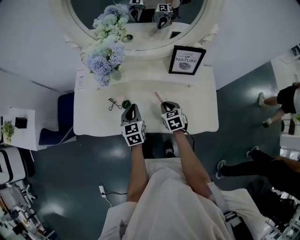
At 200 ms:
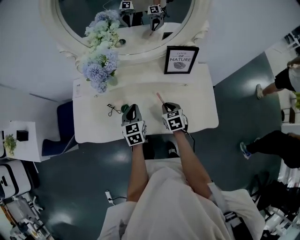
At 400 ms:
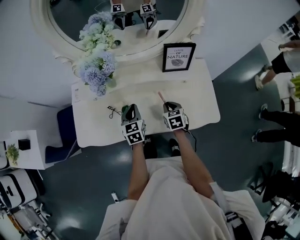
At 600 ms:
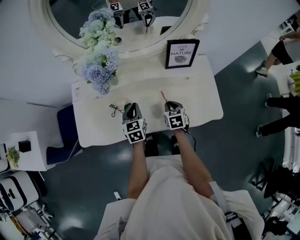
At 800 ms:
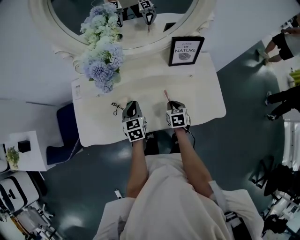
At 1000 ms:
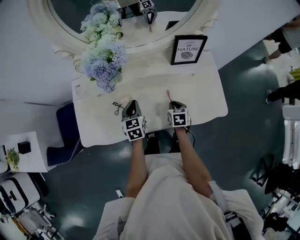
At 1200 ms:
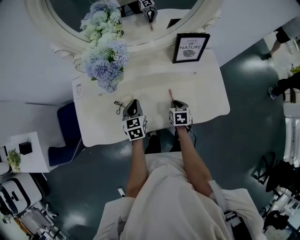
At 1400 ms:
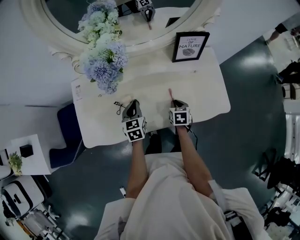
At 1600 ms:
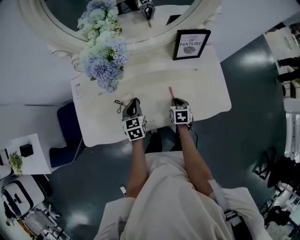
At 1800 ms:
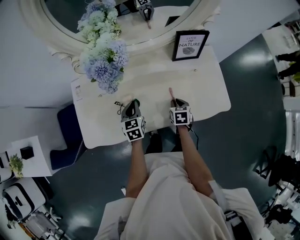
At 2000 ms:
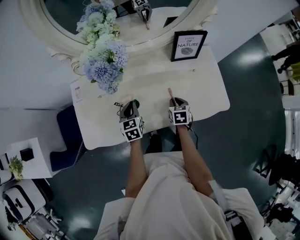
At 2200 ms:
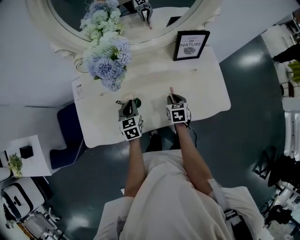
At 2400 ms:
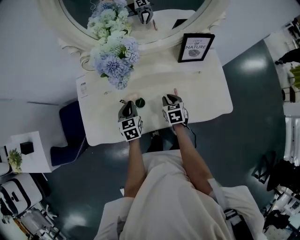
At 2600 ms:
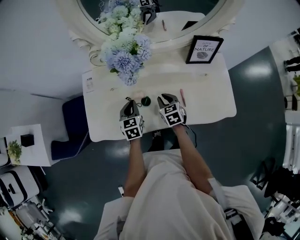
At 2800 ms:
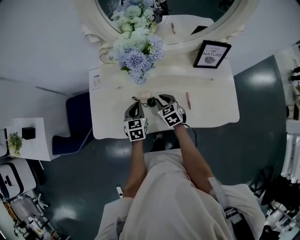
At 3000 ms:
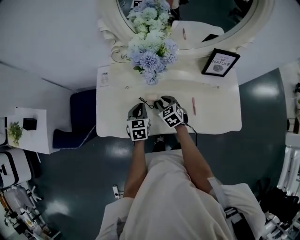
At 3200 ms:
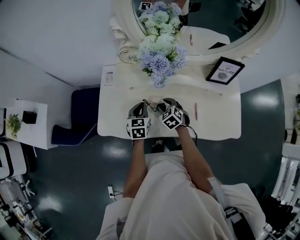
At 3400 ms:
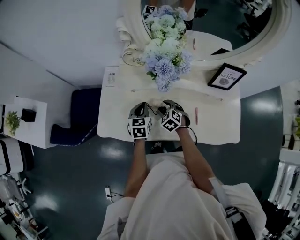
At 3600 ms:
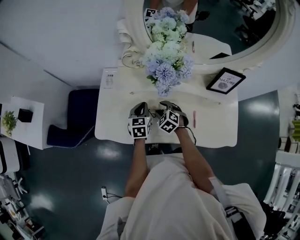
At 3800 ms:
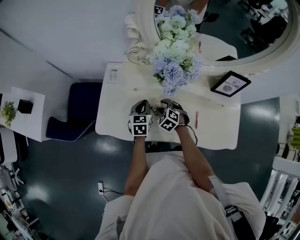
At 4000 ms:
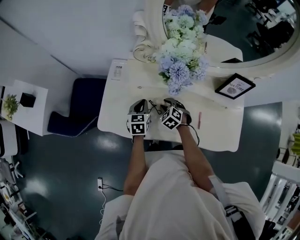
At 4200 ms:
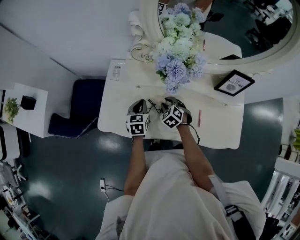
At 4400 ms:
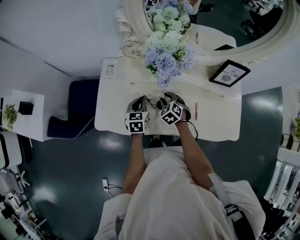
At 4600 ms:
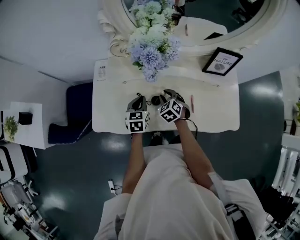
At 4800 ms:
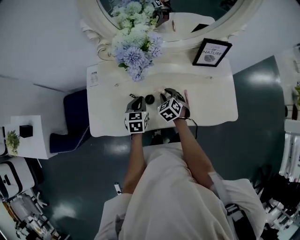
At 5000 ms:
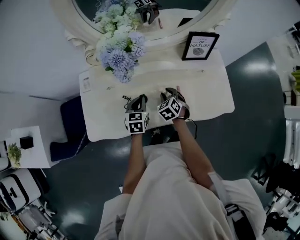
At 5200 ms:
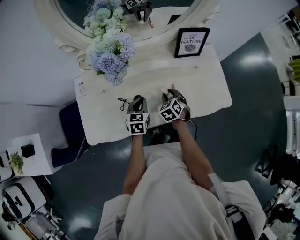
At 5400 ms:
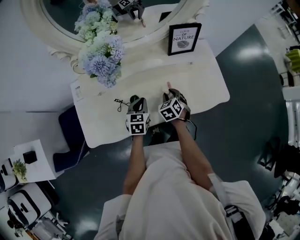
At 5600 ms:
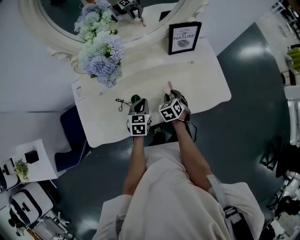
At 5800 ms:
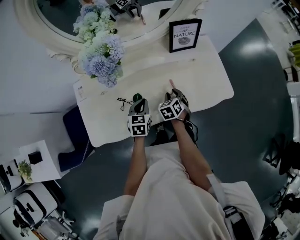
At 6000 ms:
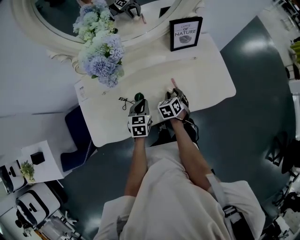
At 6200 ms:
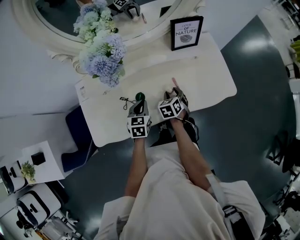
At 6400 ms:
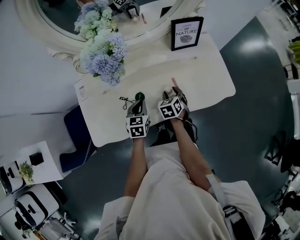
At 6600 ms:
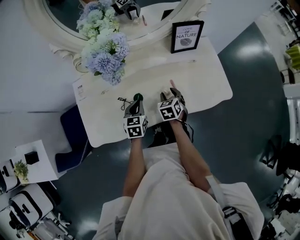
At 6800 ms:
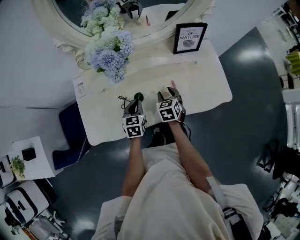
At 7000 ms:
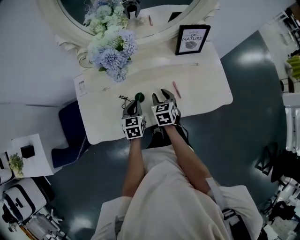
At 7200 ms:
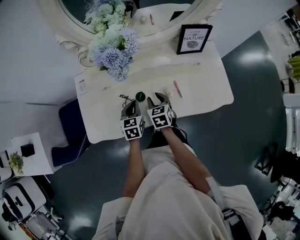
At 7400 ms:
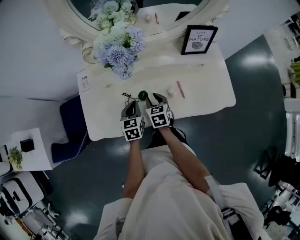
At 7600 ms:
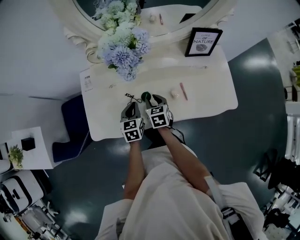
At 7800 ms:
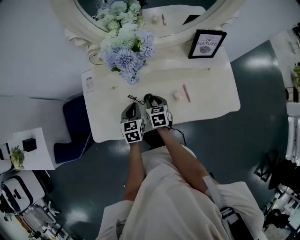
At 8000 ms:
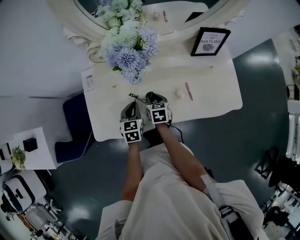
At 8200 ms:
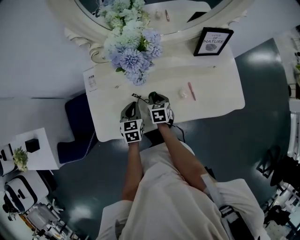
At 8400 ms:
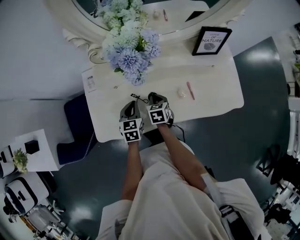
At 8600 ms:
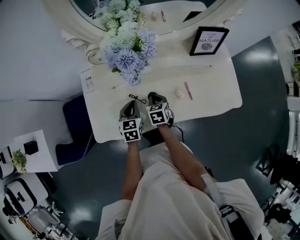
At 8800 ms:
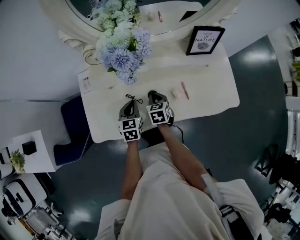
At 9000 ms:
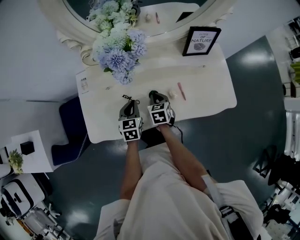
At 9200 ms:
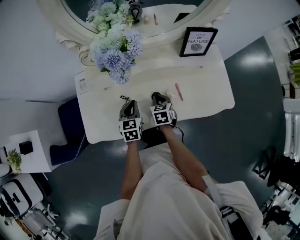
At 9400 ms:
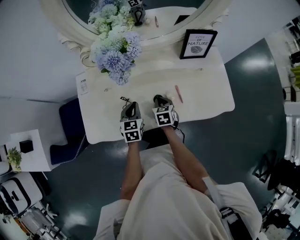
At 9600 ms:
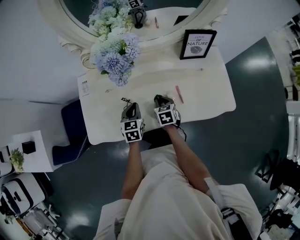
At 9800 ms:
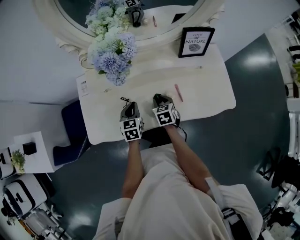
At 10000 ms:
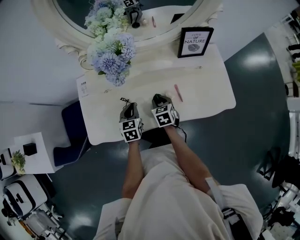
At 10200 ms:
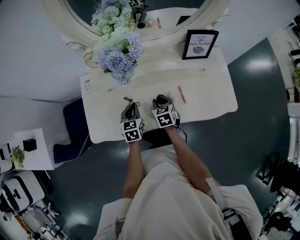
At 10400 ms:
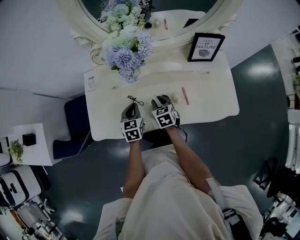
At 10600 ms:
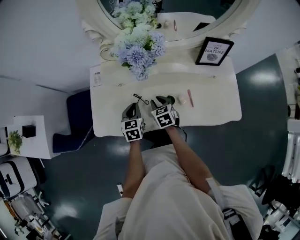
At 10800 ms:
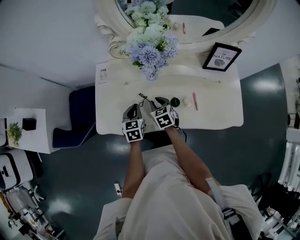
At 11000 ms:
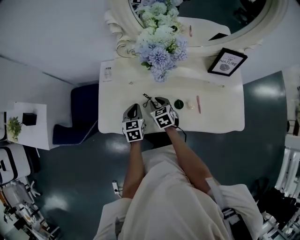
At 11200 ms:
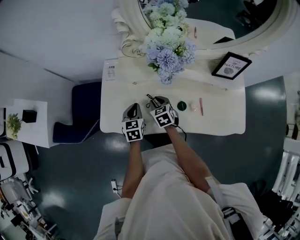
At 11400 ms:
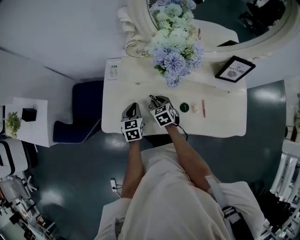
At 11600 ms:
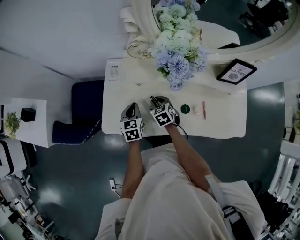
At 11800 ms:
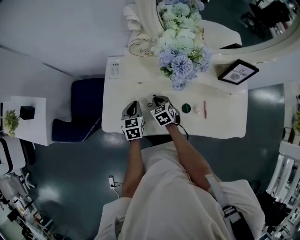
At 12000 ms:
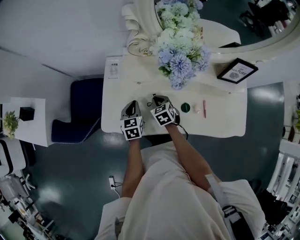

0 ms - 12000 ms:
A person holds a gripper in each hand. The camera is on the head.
0 ms - 1600 ms: The left gripper travels downward and to the left by some 10 cm. Meanwhile the right gripper is displaced downward by approximately 10 cm, and turns by about 30 degrees.
1600 ms - 3000 ms: The right gripper shifts about 25 cm to the left, and swivels about 50 degrees, while the left gripper shifts approximately 10 cm to the left.
4400 ms - 6000 ms: The right gripper shifts by approximately 20 cm, and rotates around the line of its fingers by about 40 degrees, clockwise from behind. Meanwhile the left gripper moves some 15 cm, and turns by approximately 30 degrees.
6000 ms - 7600 ms: The right gripper shifts some 15 cm to the left, and changes its angle by roughly 30 degrees, while the left gripper shifts some 10 cm to the left.
7600 ms - 9000 ms: The right gripper closes.
9000 ms - 10400 ms: There are only small adjustments of the grippers.
10400 ms - 12000 ms: The right gripper is displaced to the left and forward by approximately 15 cm; the left gripper travels to the left by about 10 cm.

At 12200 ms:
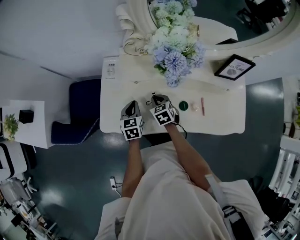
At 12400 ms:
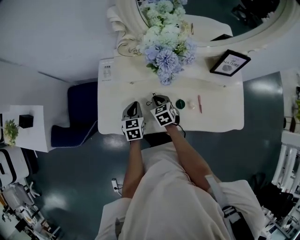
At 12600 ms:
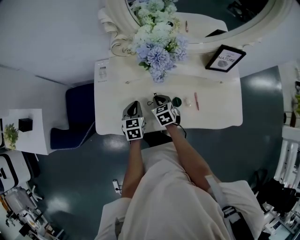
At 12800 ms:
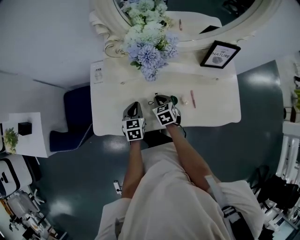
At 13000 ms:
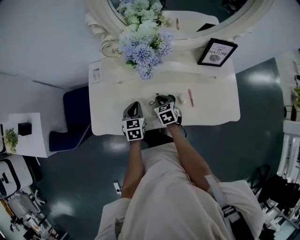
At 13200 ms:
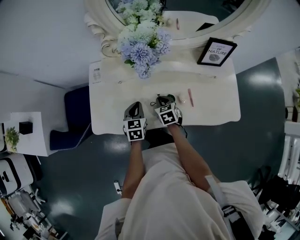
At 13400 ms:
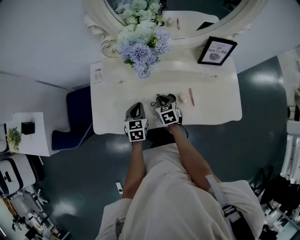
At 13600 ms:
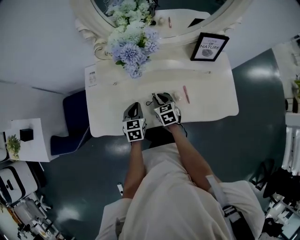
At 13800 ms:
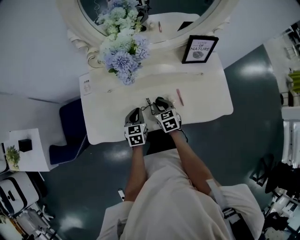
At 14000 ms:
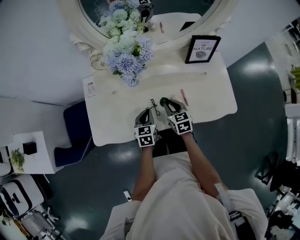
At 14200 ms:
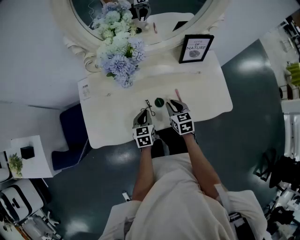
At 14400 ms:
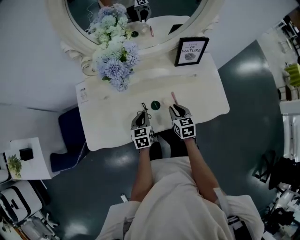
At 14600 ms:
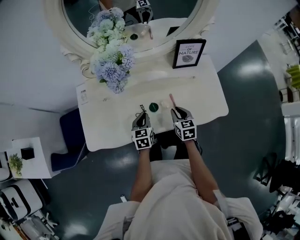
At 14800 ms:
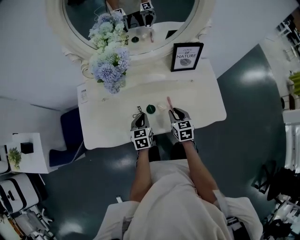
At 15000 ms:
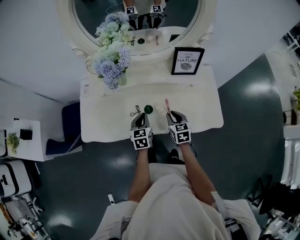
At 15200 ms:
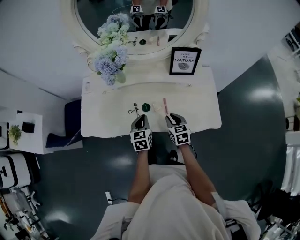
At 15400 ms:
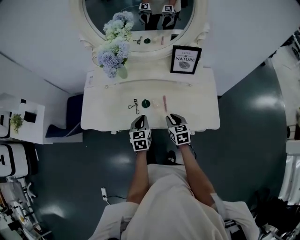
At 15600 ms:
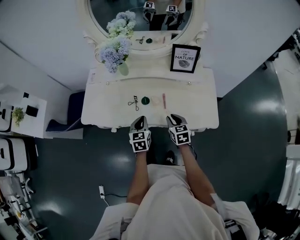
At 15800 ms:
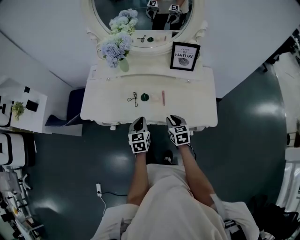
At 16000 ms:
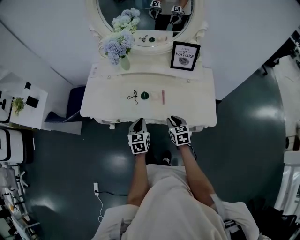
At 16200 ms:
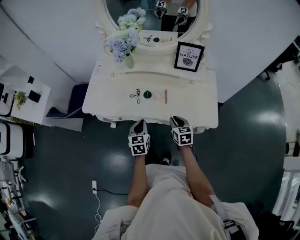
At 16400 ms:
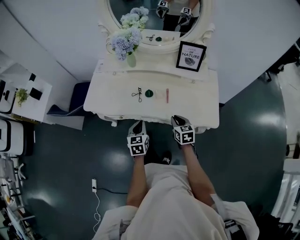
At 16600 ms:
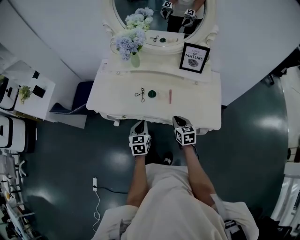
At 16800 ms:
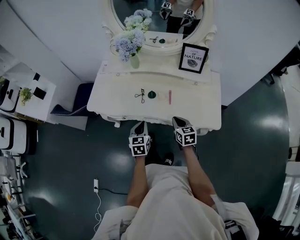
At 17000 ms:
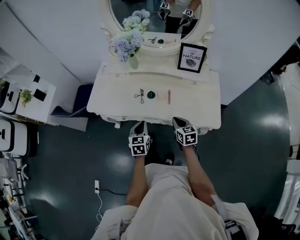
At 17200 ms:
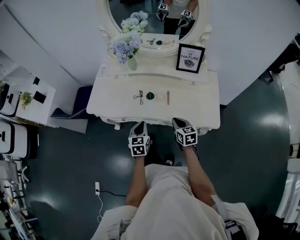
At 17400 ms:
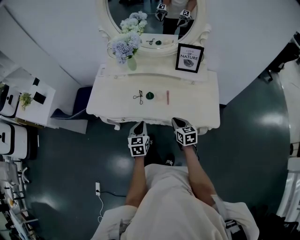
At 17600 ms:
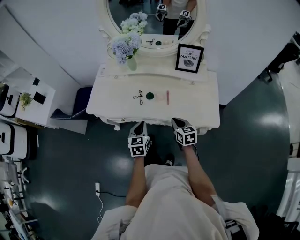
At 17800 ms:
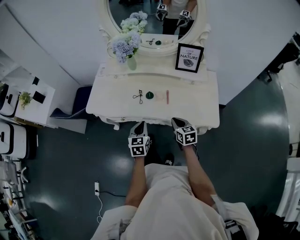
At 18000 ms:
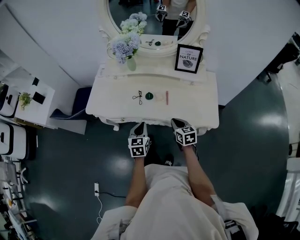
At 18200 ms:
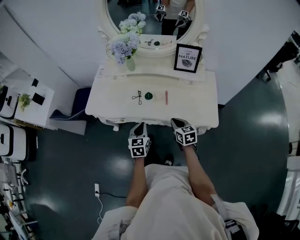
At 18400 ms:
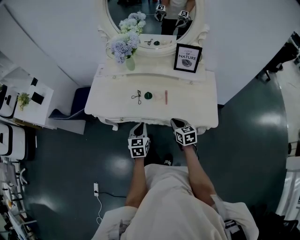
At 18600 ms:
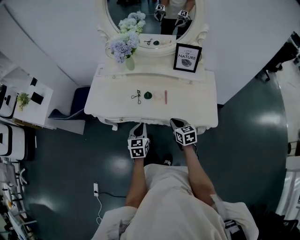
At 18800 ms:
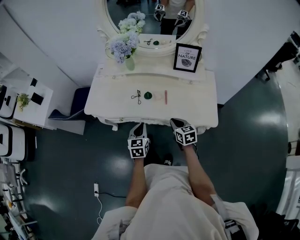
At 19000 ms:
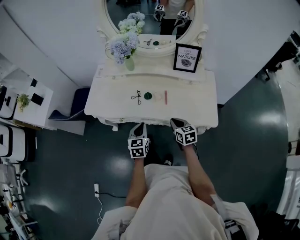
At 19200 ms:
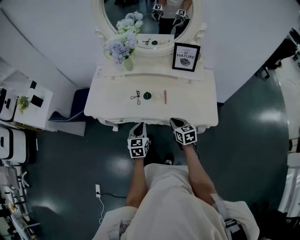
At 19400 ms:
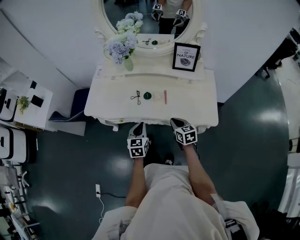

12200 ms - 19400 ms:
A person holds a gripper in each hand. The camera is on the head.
12200 ms - 13600 ms: Both grippers travel together to the right, approximately 10 cm.
13600 ms - 15000 ms: The grippers both shift to the right by some 15 cm.
15000 ms - 16600 ms: The two grippers go approximately 15 cm backward.
16600 ms - 18000 ms: There are only small adjustments of the grippers.
18000 ms - 19400 ms: Both grippers stay about where they are.

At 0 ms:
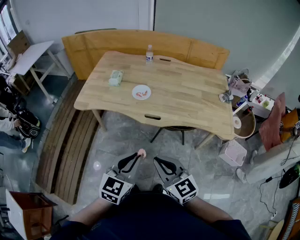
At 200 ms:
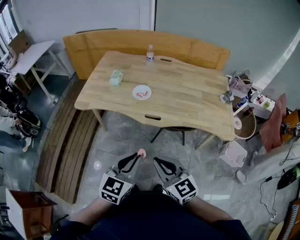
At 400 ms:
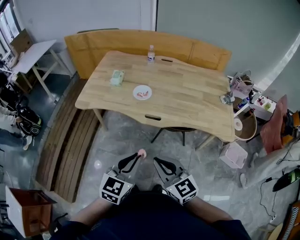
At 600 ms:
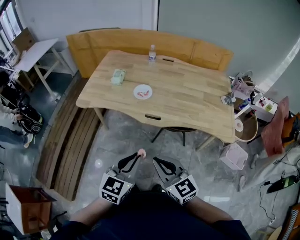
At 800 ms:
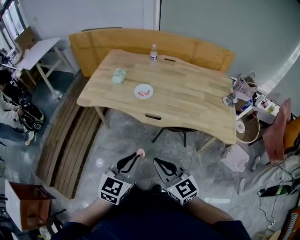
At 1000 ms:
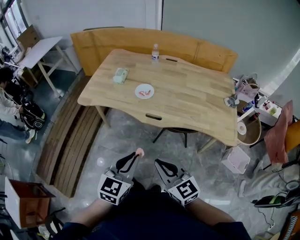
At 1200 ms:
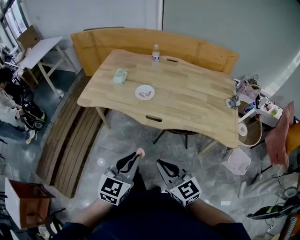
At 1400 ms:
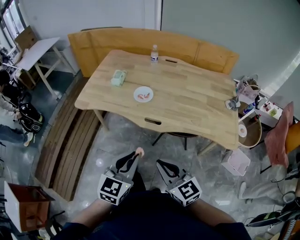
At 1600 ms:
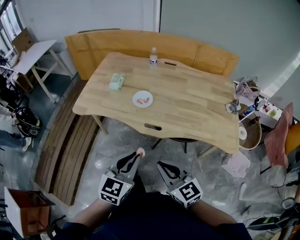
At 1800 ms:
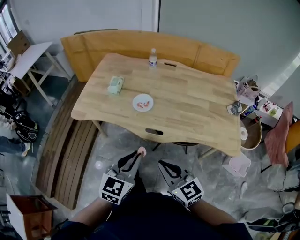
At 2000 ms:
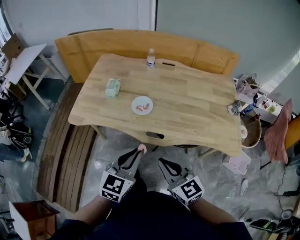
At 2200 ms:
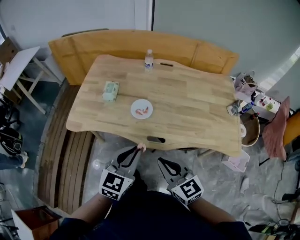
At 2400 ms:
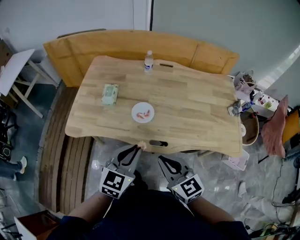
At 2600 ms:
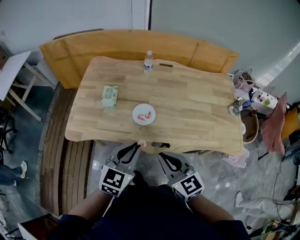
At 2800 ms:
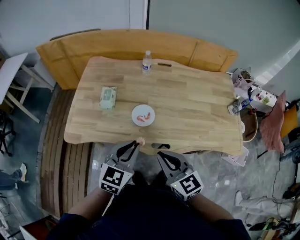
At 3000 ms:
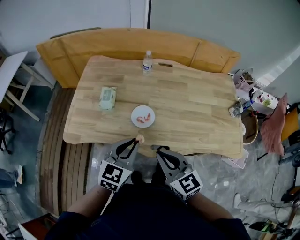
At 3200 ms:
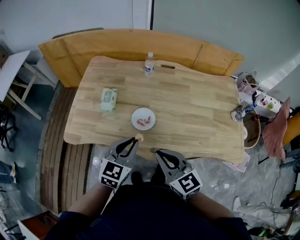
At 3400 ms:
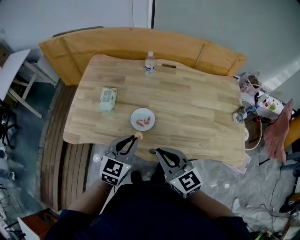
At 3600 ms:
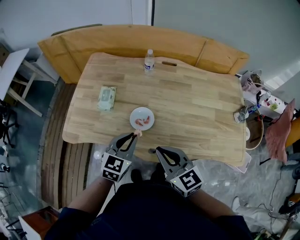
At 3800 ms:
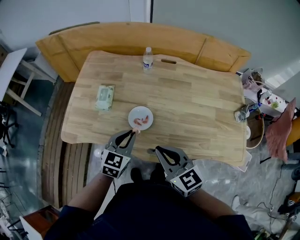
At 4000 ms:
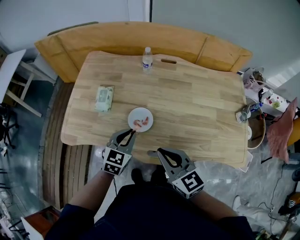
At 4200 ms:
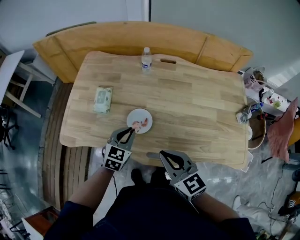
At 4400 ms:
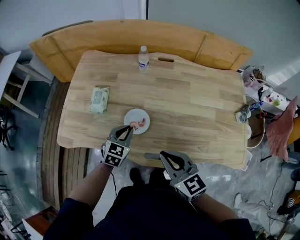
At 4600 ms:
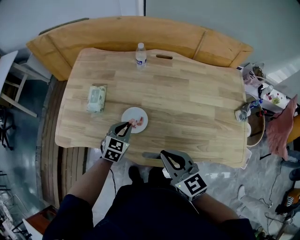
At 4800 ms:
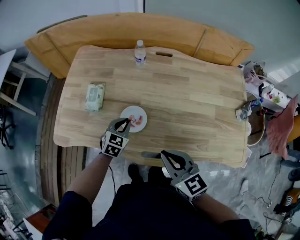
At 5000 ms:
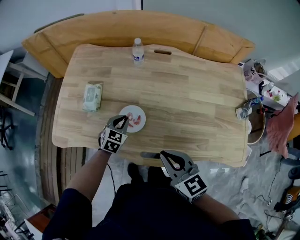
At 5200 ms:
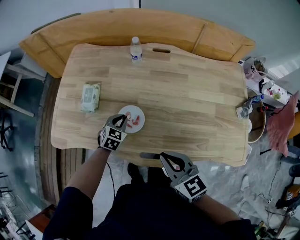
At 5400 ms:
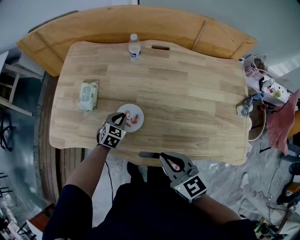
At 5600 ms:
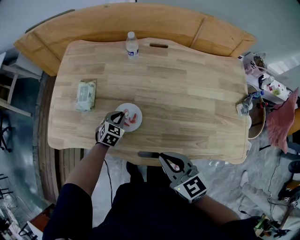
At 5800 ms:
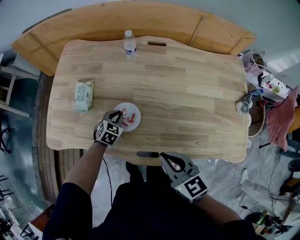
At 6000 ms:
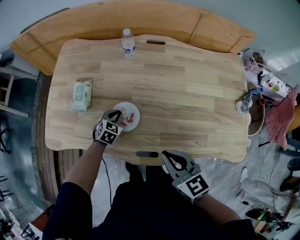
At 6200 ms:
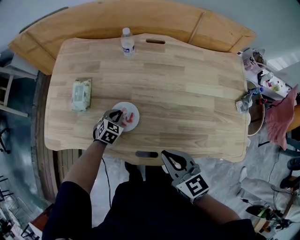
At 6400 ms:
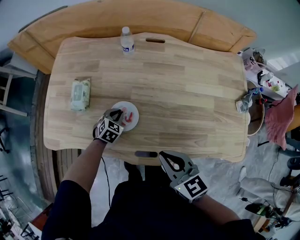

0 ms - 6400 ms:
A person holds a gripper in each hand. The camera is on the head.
0 ms - 1600 ms: Both grippers travel together forward, roughly 10 cm.
1600 ms - 3200 ms: Both grippers travel together forward, approximately 25 cm.
3200 ms - 4800 ms: The left gripper moves downward and forward, approximately 25 cm, while the right gripper is displaced to the right, forward and downward by approximately 10 cm.
4800 ms - 6400 ms: The left gripper moves downward, roughly 10 cm.
